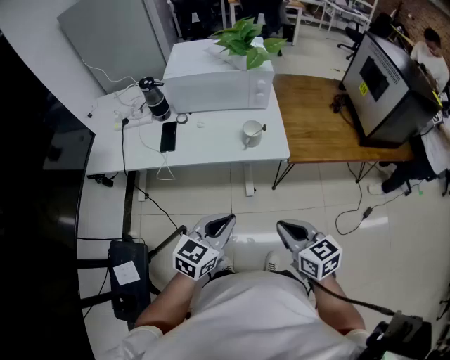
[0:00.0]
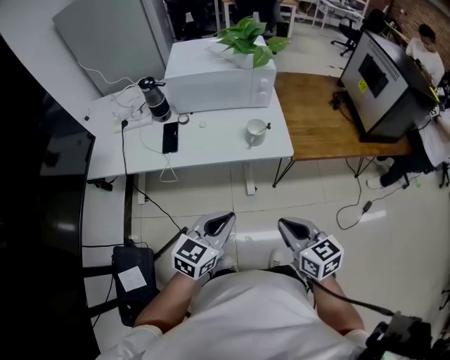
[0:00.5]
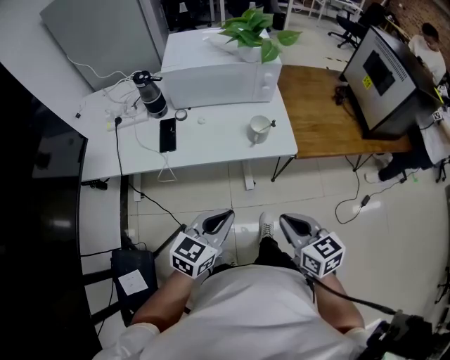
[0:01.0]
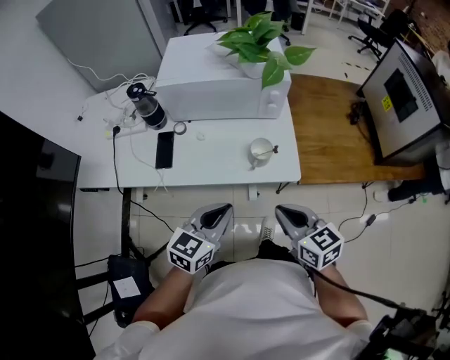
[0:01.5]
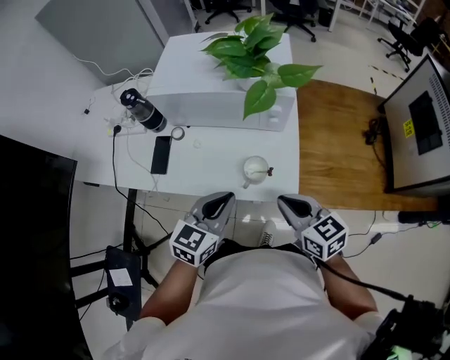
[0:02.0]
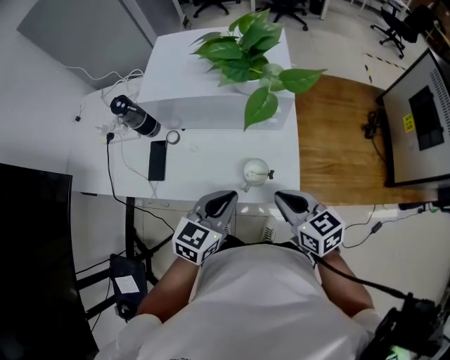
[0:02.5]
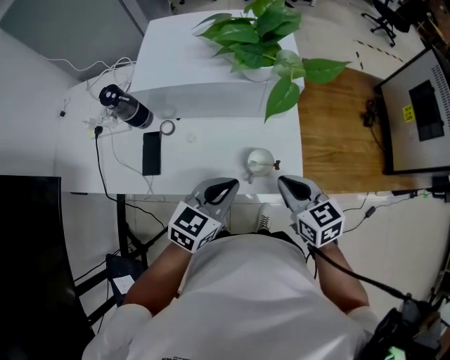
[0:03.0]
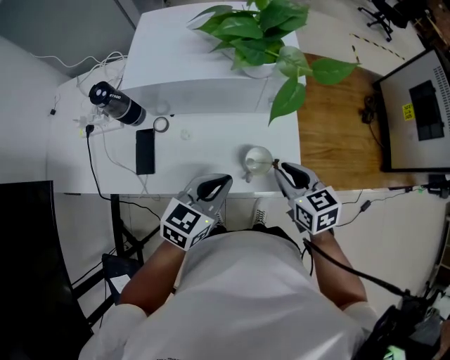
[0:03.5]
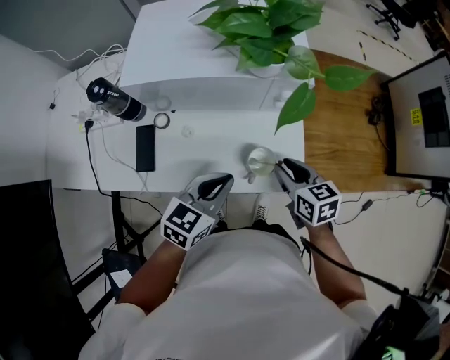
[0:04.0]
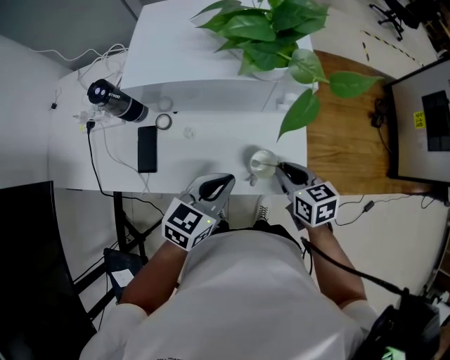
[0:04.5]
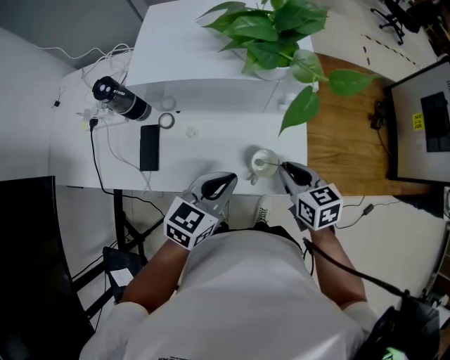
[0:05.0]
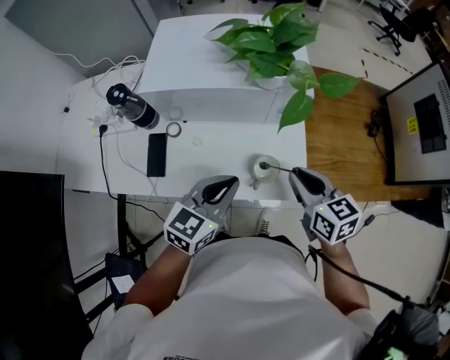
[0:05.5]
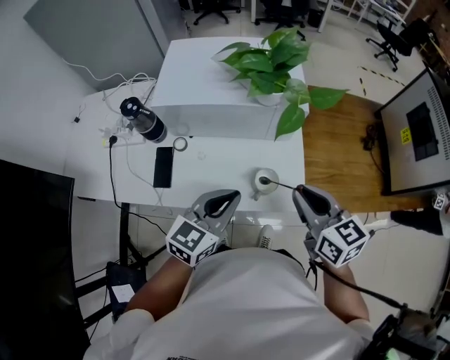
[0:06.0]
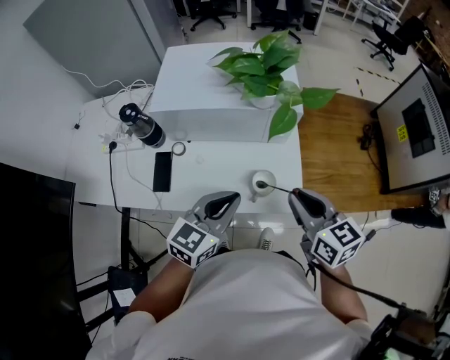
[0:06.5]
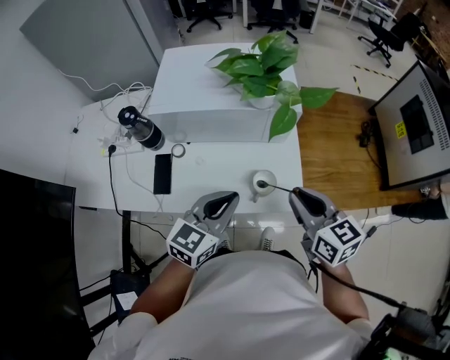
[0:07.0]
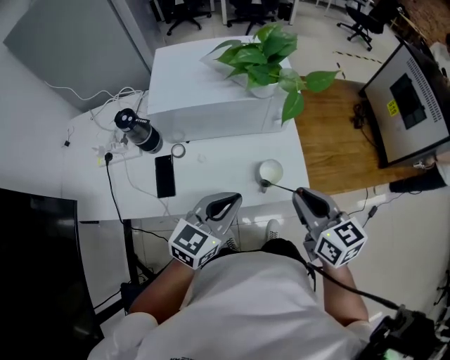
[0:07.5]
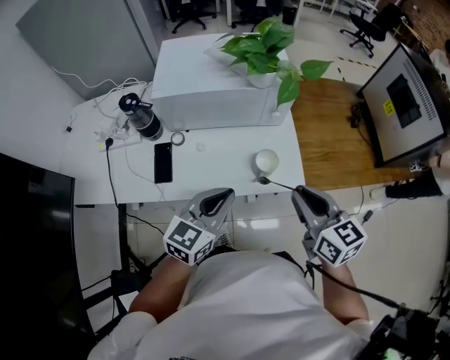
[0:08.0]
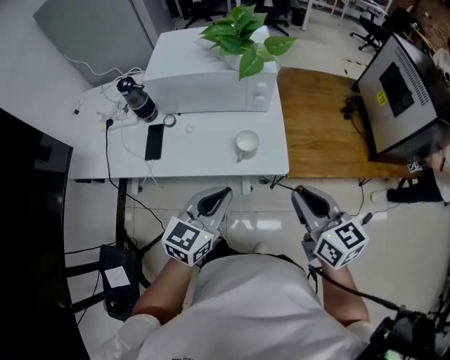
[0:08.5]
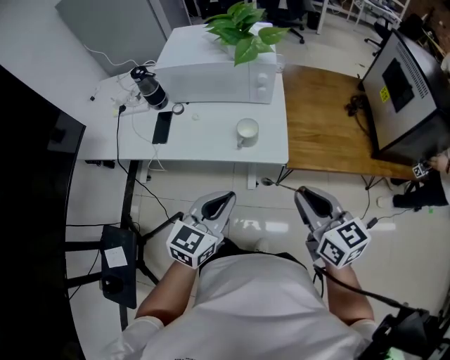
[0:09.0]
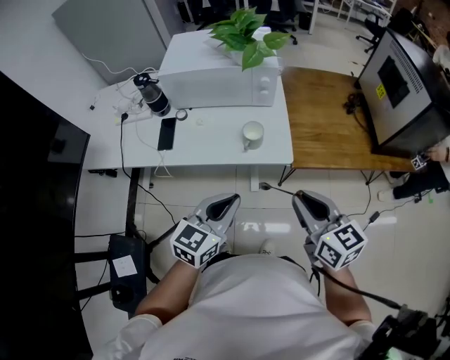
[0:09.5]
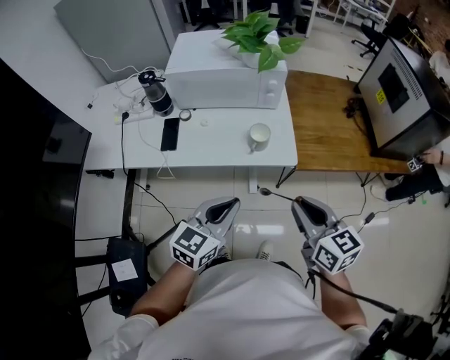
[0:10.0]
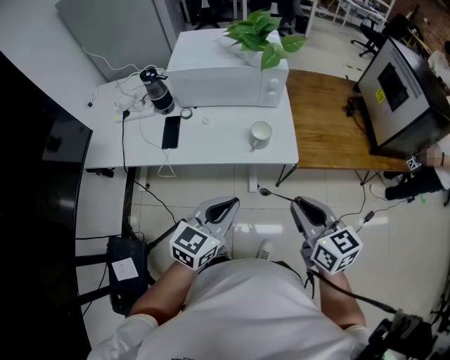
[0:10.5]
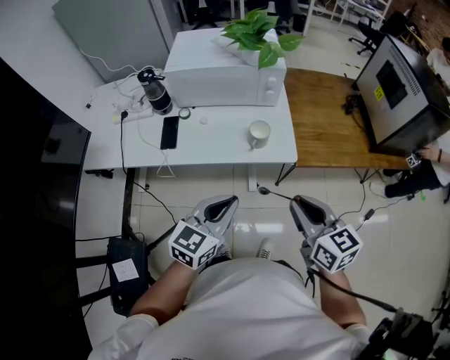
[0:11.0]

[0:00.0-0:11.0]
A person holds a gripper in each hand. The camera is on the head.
0:00.0 to 0:02.0: The grippers both shift forward by some 30 cm.
0:02.0 to 0:03.5: The left gripper moves forward, some 5 cm; the right gripper travels forward and downward by approximately 10 cm.
0:03.5 to 0:05.5: The right gripper moves upward, some 5 cm.
0:05.5 to 0:07.5: The right gripper shifts some 10 cm backward and upward, while the left gripper ends up approximately 5 cm from where it was.
0:07.5 to 0:09.0: The grippers both shift backward and to the right by roughly 20 cm.
0:09.0 to 0:11.0: The two grippers go some 5 cm to the left.

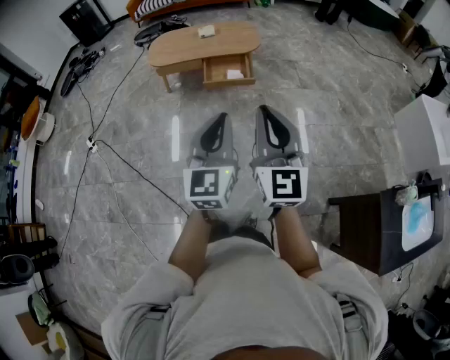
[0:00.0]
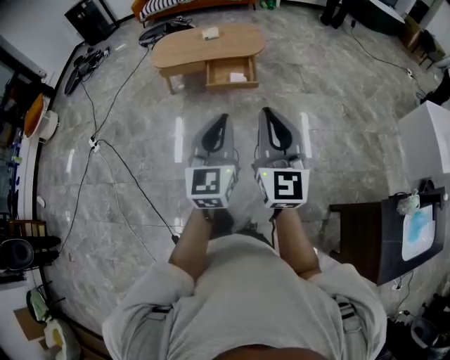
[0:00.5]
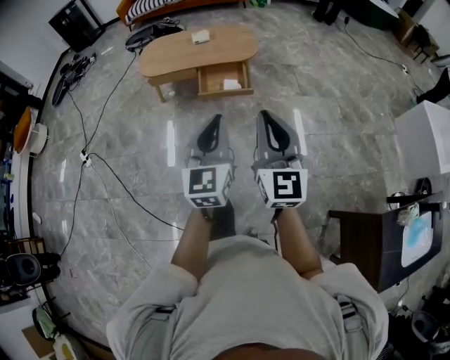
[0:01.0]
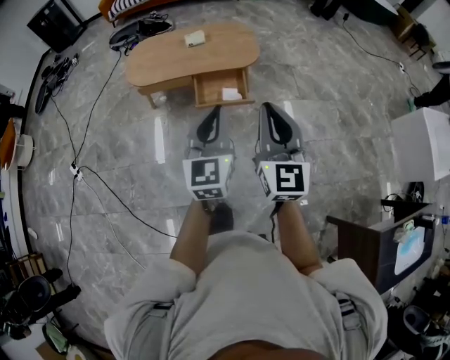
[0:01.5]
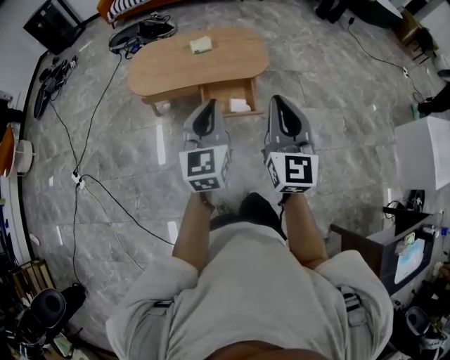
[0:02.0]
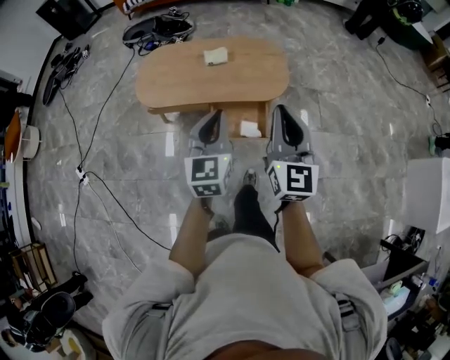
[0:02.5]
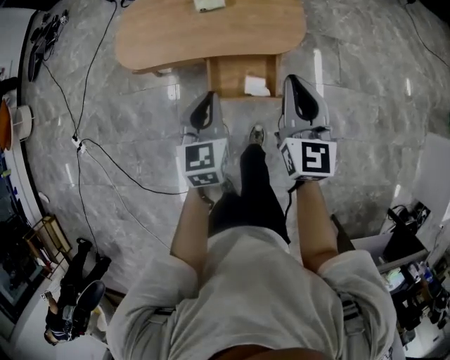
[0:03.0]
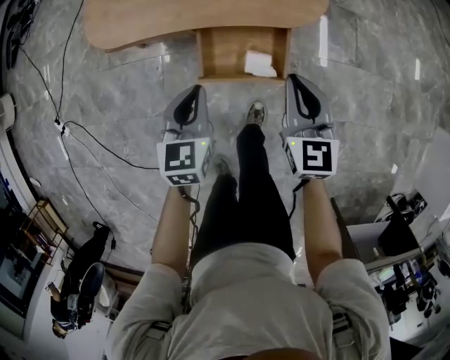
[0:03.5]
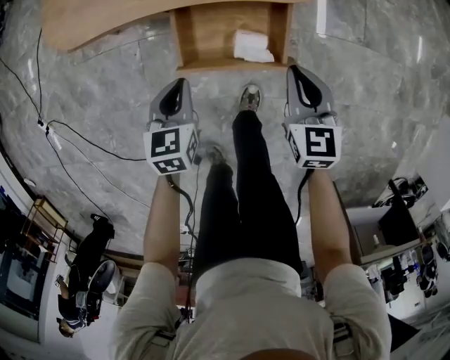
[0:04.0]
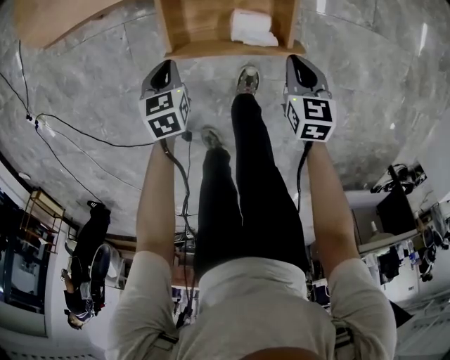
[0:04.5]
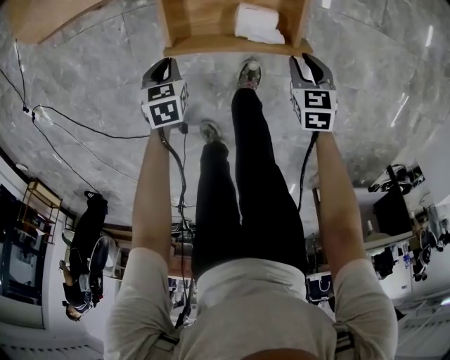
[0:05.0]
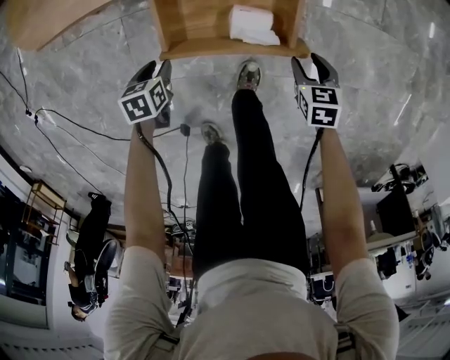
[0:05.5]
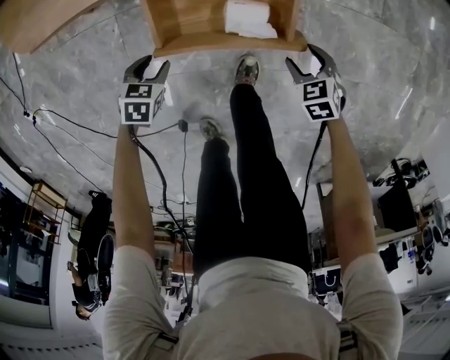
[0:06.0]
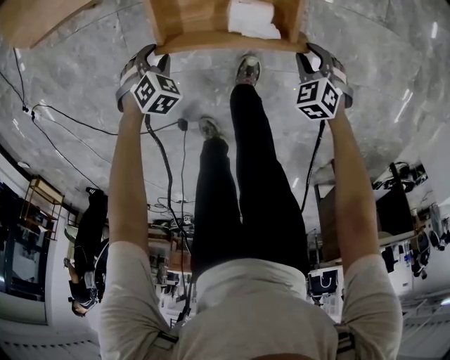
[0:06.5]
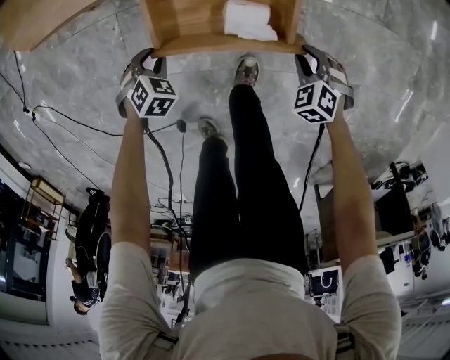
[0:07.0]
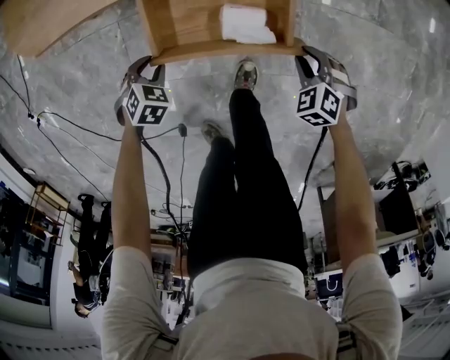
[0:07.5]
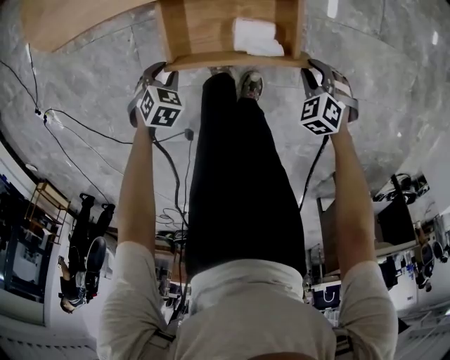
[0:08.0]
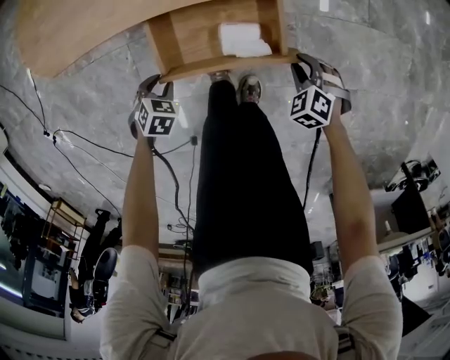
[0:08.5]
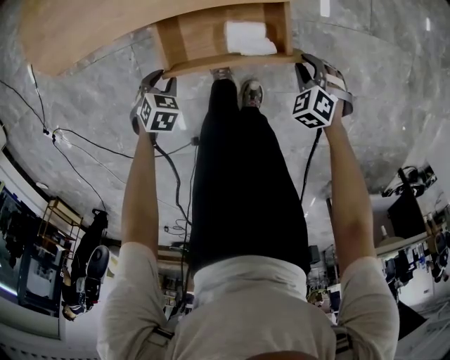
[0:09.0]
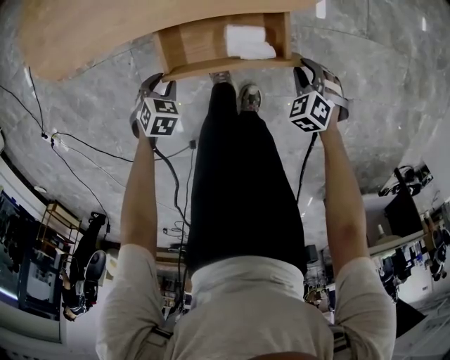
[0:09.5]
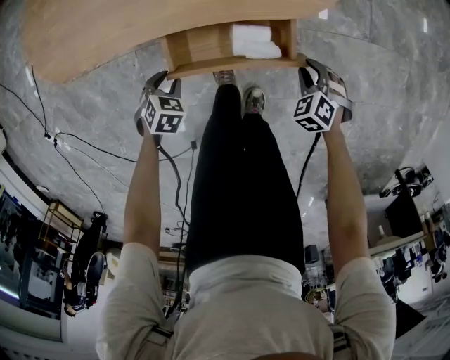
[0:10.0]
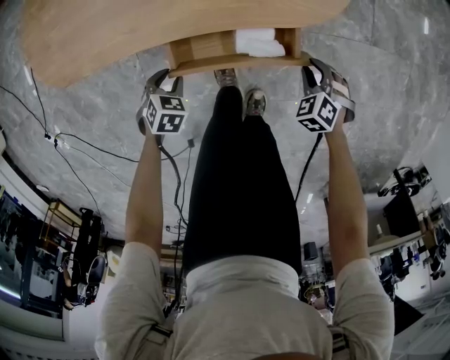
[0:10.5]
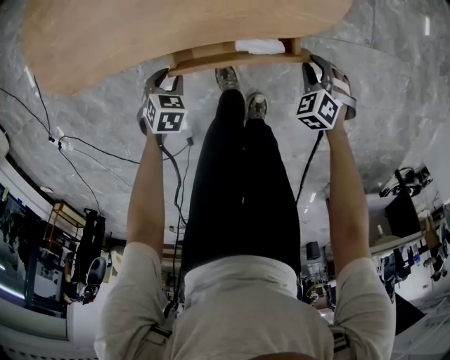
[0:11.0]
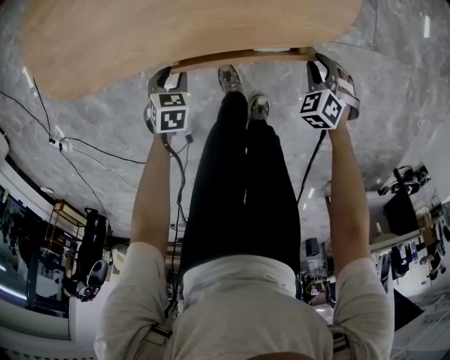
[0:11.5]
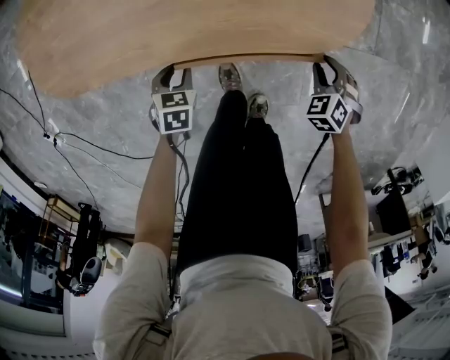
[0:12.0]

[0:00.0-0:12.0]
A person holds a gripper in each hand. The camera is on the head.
0:00.0 to 0:02.0: The pair of grippers is taken forward, some 50 cm.
0:02.0 to 0:04.0: Both grippers travel together downward and forward, about 60 cm. The left gripper tilts its fingers roughly 40 degrees downward, while the right gripper tips its fingers downward by some 40 degrees.
0:04.0 to 0:06.0: The grippers both shift downward by some 25 cm. The left gripper swivels approximately 30 degrees, and opens. The right gripper tips its fingers downward by about 30 degrees, and opens.
0:06.0 to 0:08.0: The left gripper changes its angle by some 20 degrees. The right gripper turns by about 30 degrees, and closes.
0:08.0 to 0:10.0: The right gripper shifts by approximately 5 cm; the left gripper shifts by roughly 10 cm.
0:10.0 to 0:12.0: The right gripper changes place by approximately 10 cm. The left gripper shifts by about 10 cm, and changes its angle by approximately 20 degrees.

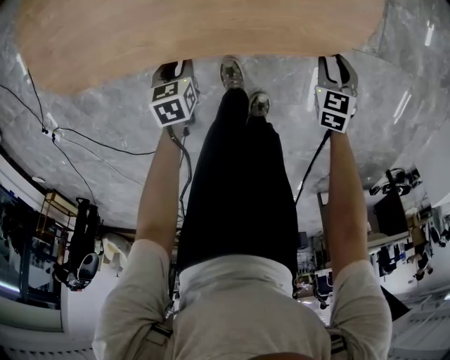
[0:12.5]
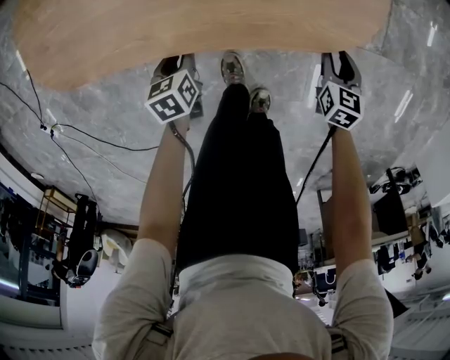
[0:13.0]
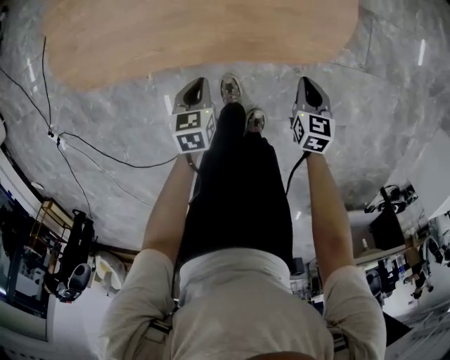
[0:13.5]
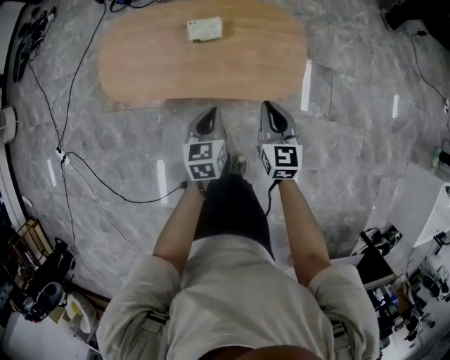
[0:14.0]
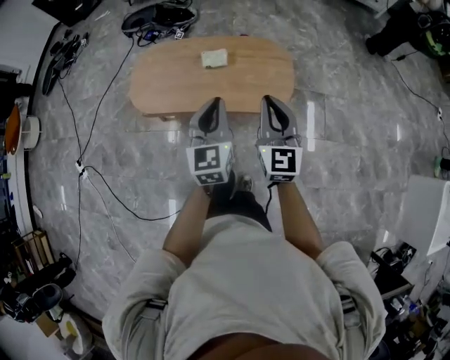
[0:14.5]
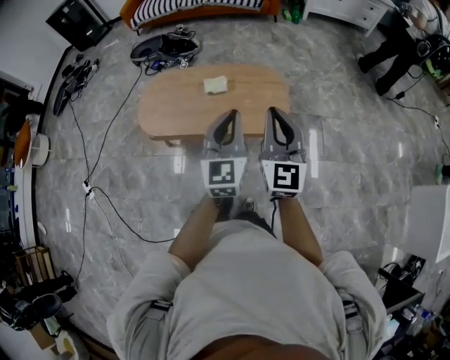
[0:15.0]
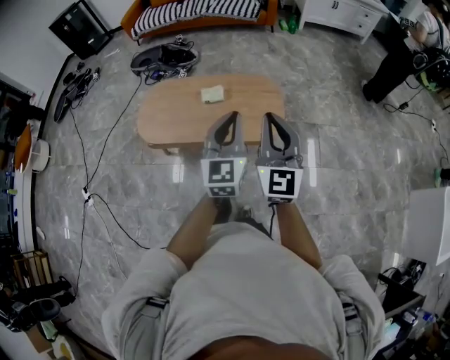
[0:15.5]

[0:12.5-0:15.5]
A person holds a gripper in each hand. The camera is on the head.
0:12.5 to 0:14.0: Both grippers move upward, some 35 cm. The left gripper rotates some 30 degrees, and closes up. Meanwhile the right gripper tips its fingers upward by approximately 30 degrees, and closes its fingers.
0:14.0 to 0:15.5: The right gripper is displaced upward and backward by approximately 40 cm, and points its fingers approximately 30 degrees further upward, while the left gripper moves upward, some 35 cm, and tilts its fingers about 30 degrees upward.
